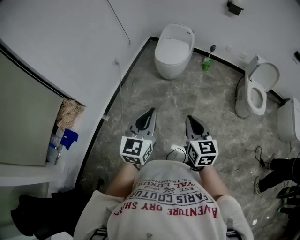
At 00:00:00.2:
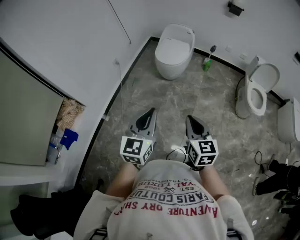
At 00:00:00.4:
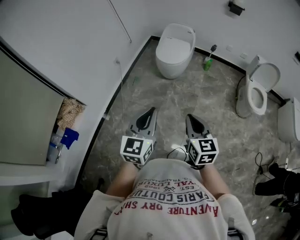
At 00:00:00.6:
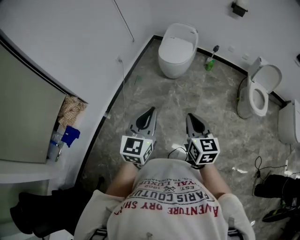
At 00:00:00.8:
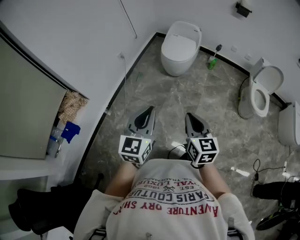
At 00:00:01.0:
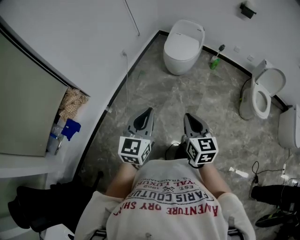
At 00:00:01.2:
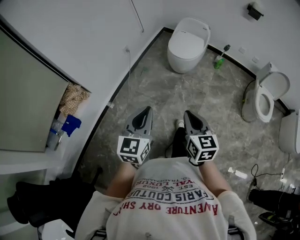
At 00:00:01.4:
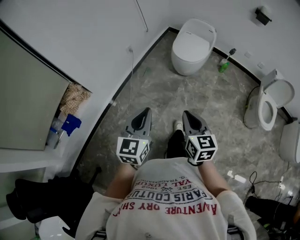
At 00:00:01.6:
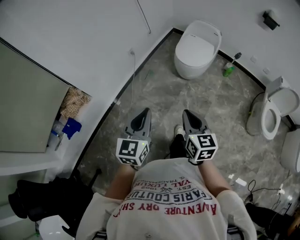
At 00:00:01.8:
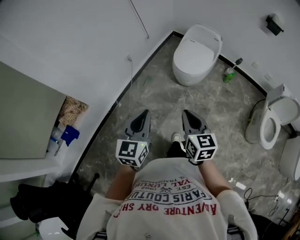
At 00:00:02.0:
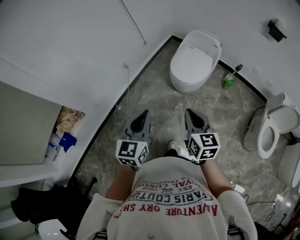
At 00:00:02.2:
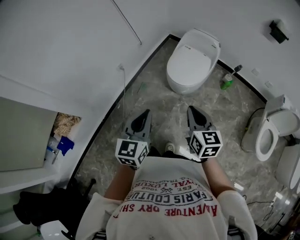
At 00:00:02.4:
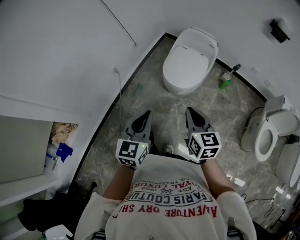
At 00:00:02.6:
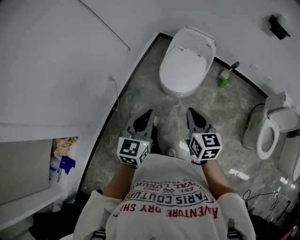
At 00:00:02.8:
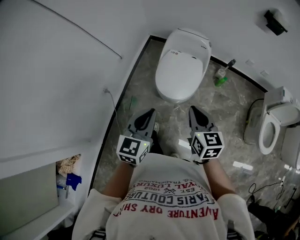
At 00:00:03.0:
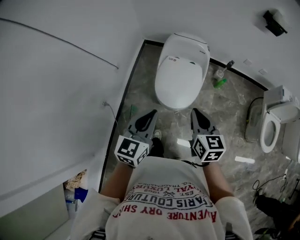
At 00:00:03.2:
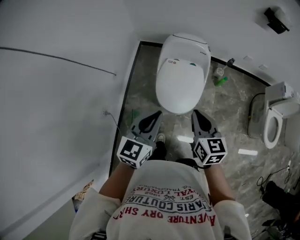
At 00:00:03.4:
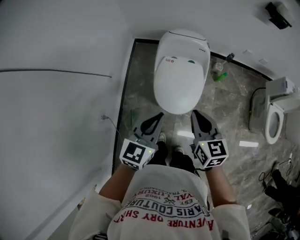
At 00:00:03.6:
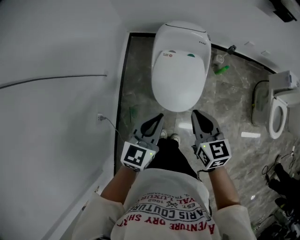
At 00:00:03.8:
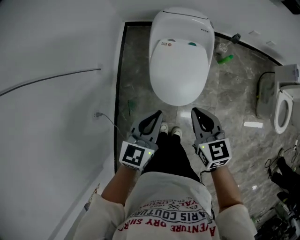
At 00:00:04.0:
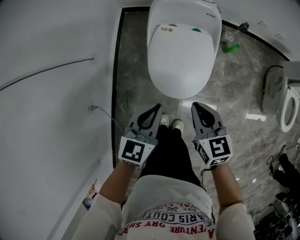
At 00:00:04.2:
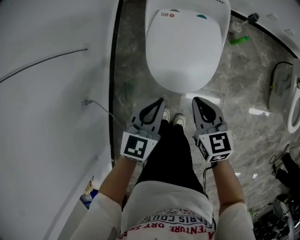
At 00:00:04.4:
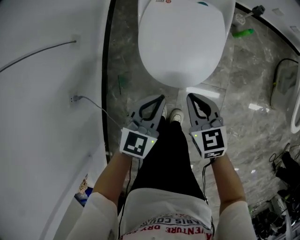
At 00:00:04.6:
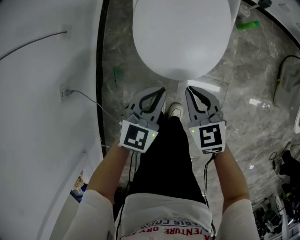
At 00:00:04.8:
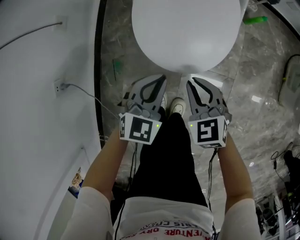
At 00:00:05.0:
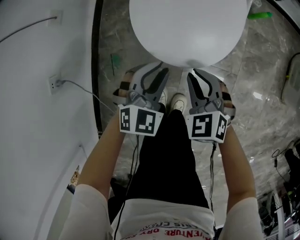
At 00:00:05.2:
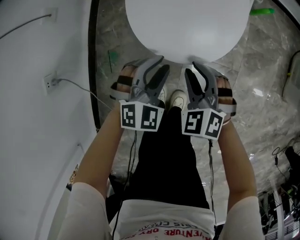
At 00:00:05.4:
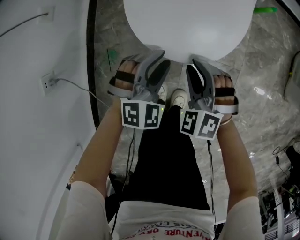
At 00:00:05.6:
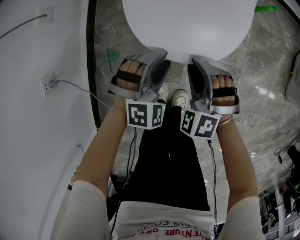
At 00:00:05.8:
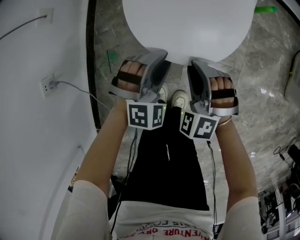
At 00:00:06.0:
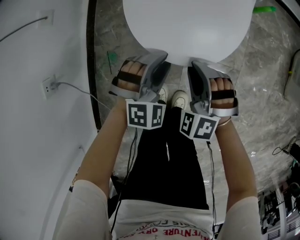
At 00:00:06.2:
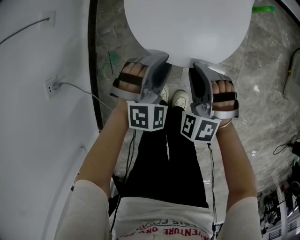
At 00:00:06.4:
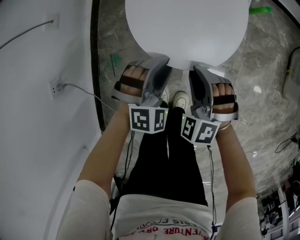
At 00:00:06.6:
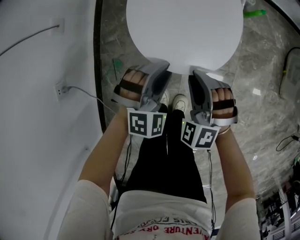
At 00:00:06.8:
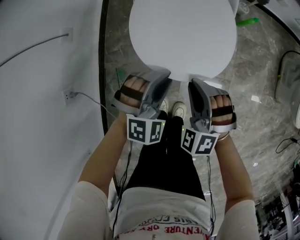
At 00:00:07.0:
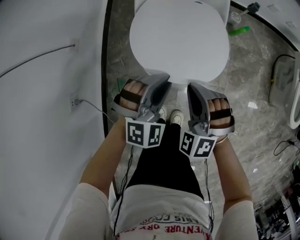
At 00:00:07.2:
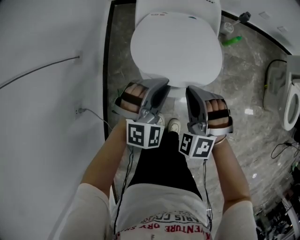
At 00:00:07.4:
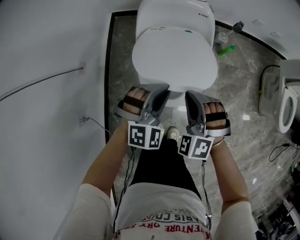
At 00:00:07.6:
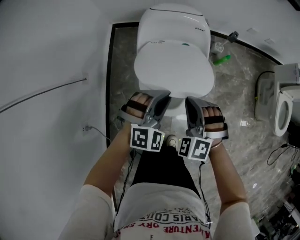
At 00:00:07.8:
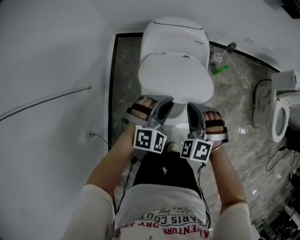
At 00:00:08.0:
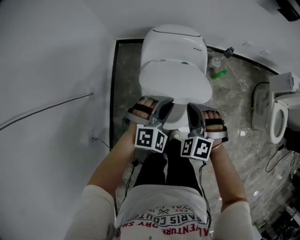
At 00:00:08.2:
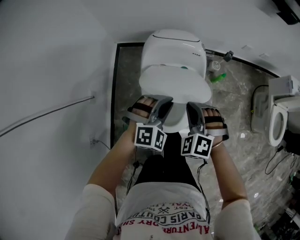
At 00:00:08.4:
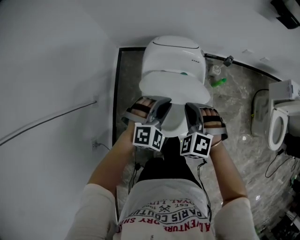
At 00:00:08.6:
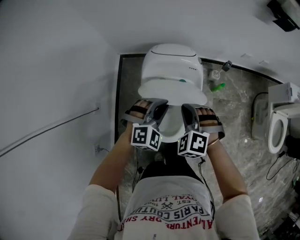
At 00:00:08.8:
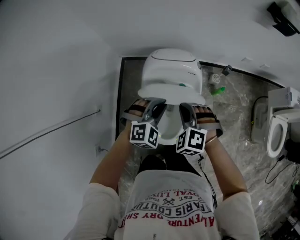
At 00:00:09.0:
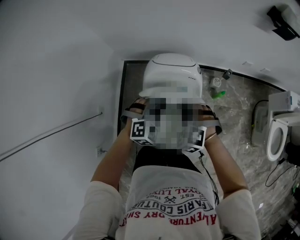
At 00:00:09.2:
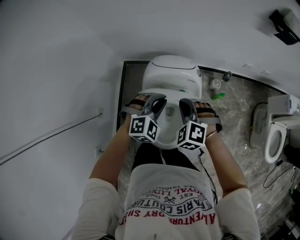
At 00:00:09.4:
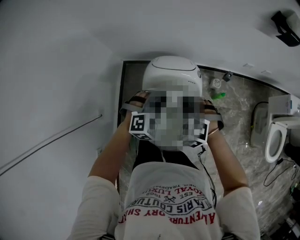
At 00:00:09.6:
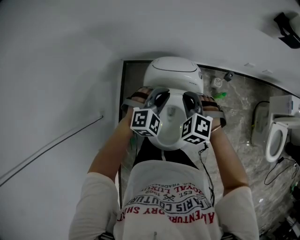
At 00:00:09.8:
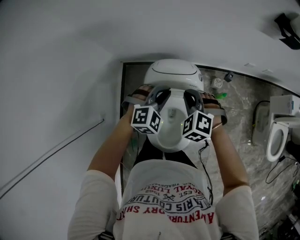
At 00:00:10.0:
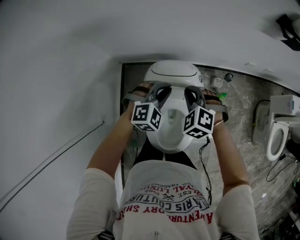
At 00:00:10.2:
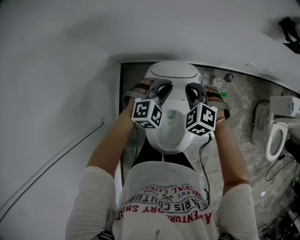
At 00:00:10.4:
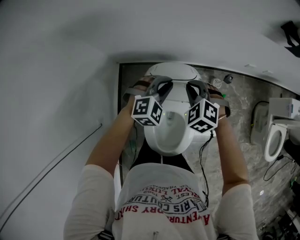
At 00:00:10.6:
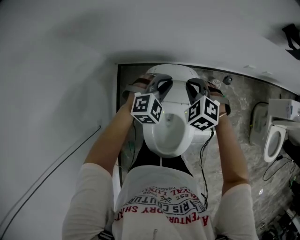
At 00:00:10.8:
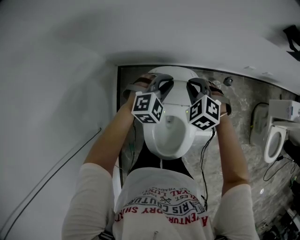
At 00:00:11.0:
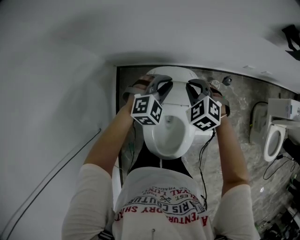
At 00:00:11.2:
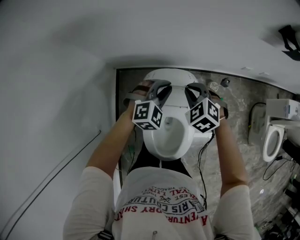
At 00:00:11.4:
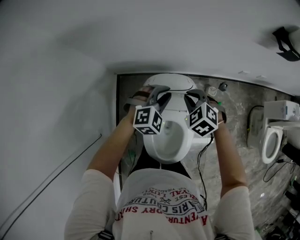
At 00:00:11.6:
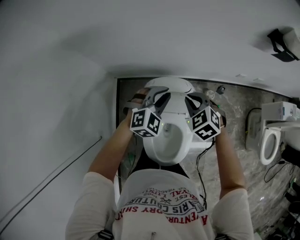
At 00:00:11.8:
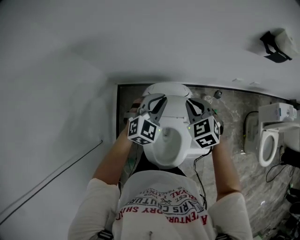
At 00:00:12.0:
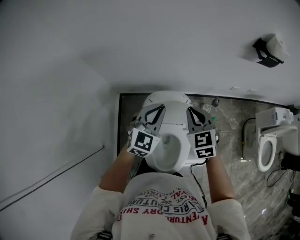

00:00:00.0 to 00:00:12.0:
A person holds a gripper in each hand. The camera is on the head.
00:00:00.0 to 00:00:01.6: The grippers both shift forward and to the left by some 15 cm.
00:00:01.6 to 00:00:03.0: The two grippers travel together, forward, some 60 cm. The left gripper changes its angle by about 30 degrees.
00:00:03.0 to 00:00:04.4: Both grippers move downward, approximately 40 cm. The left gripper changes its angle by about 20 degrees.
00:00:04.4 to 00:00:06.0: Both grippers travel together downward, about 20 cm. The right gripper rotates around the line of its fingers by approximately 60 degrees, counterclockwise from behind, while the left gripper rolls clockwise, seen from behind, by some 50 degrees, and opens.
00:00:06.0 to 00:00:07.6: Both grippers move upward and forward, about 35 cm. The left gripper closes its fingers.
00:00:07.6 to 00:00:09.0: Both grippers travel together forward and upward, roughly 20 cm.
00:00:09.0 to 00:00:10.4: Both grippers travel together forward, some 20 cm.
00:00:10.4 to 00:00:12.0: The grippers both shift upward by about 15 cm. The left gripper rotates roughly 40 degrees. Meanwhile the right gripper swivels about 40 degrees.

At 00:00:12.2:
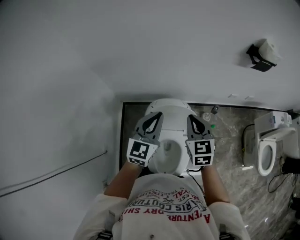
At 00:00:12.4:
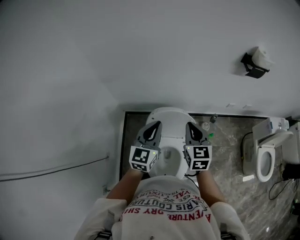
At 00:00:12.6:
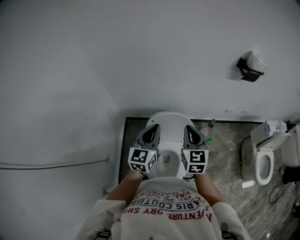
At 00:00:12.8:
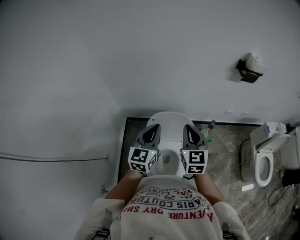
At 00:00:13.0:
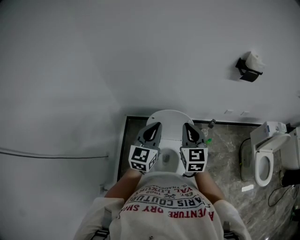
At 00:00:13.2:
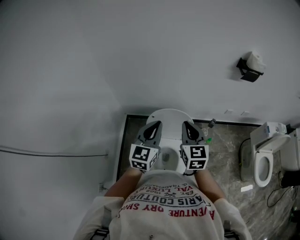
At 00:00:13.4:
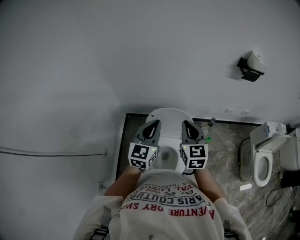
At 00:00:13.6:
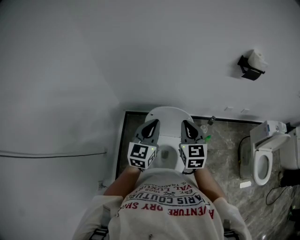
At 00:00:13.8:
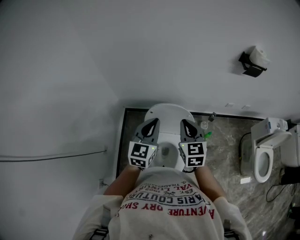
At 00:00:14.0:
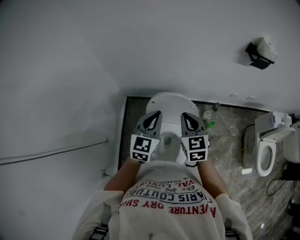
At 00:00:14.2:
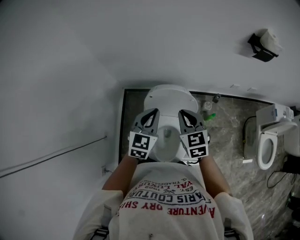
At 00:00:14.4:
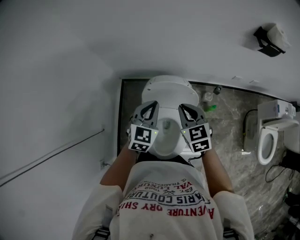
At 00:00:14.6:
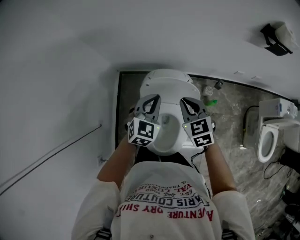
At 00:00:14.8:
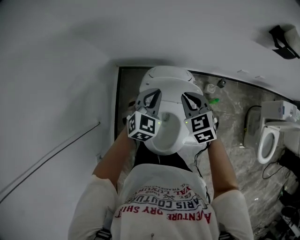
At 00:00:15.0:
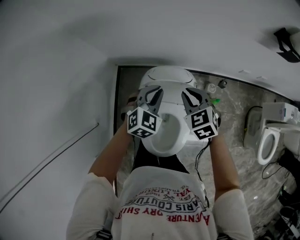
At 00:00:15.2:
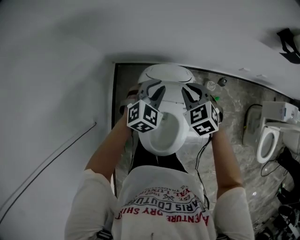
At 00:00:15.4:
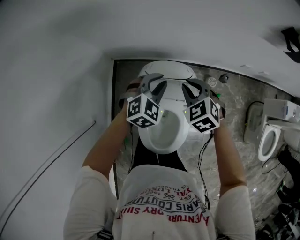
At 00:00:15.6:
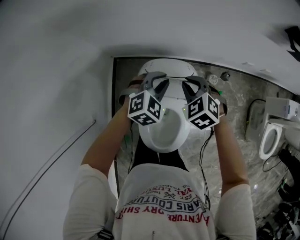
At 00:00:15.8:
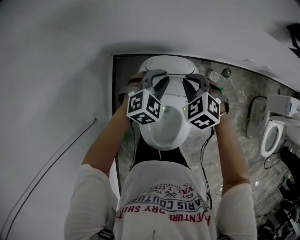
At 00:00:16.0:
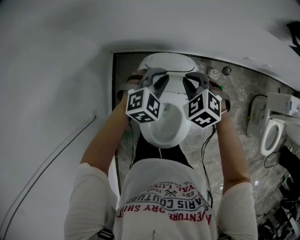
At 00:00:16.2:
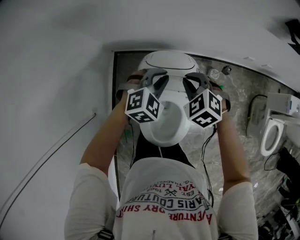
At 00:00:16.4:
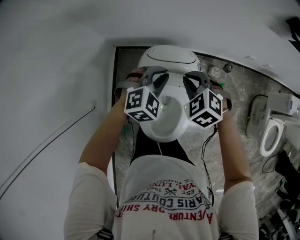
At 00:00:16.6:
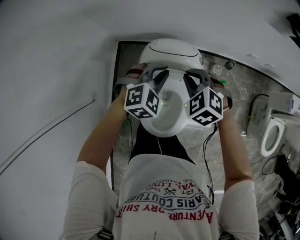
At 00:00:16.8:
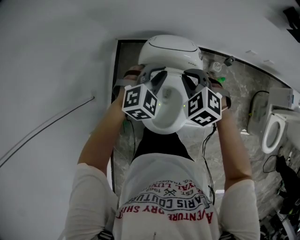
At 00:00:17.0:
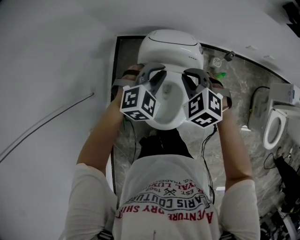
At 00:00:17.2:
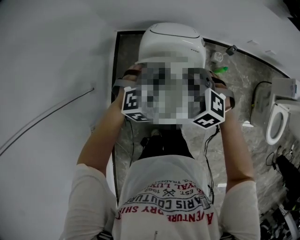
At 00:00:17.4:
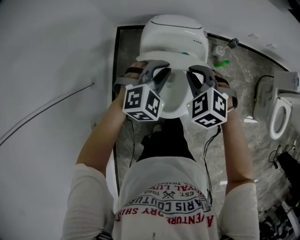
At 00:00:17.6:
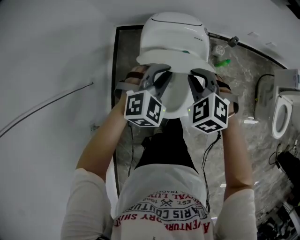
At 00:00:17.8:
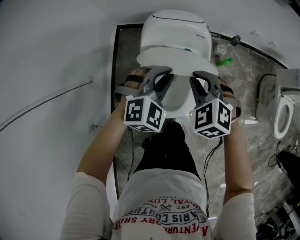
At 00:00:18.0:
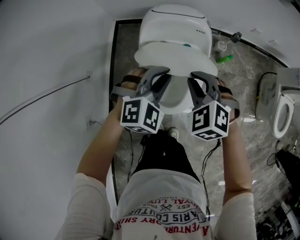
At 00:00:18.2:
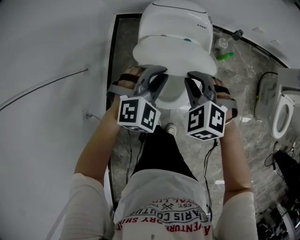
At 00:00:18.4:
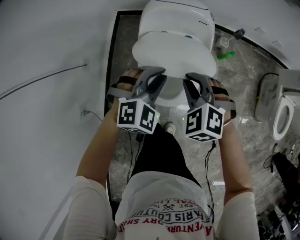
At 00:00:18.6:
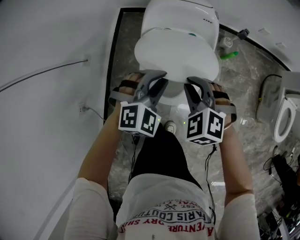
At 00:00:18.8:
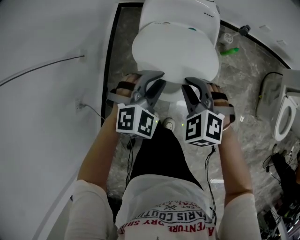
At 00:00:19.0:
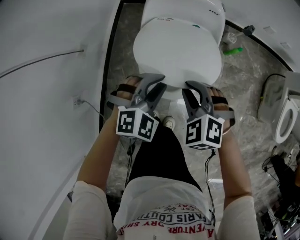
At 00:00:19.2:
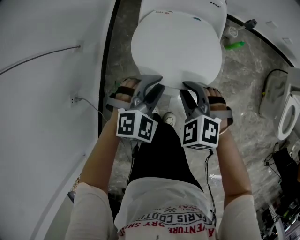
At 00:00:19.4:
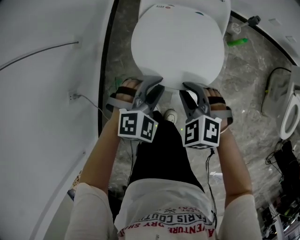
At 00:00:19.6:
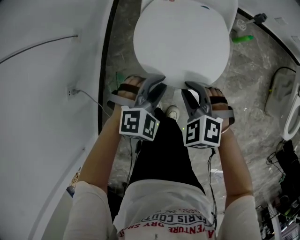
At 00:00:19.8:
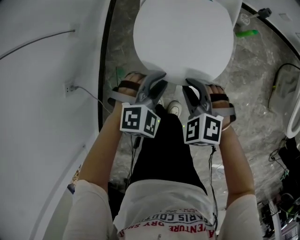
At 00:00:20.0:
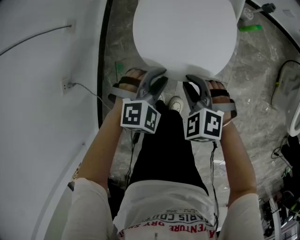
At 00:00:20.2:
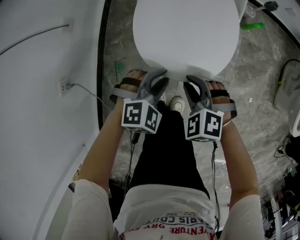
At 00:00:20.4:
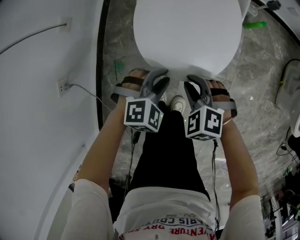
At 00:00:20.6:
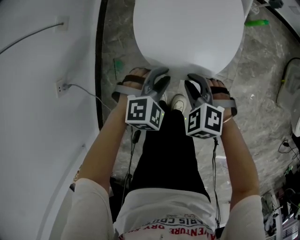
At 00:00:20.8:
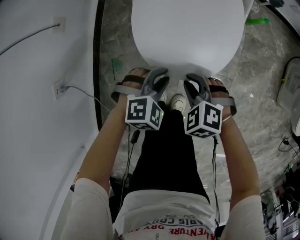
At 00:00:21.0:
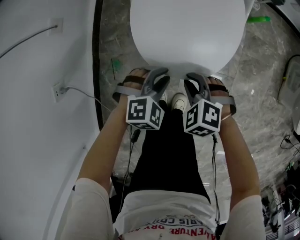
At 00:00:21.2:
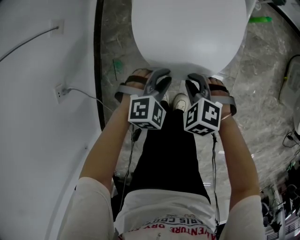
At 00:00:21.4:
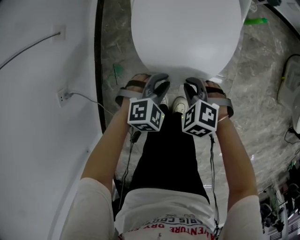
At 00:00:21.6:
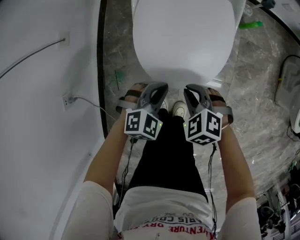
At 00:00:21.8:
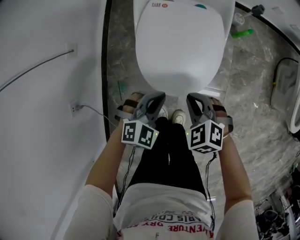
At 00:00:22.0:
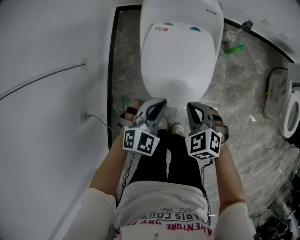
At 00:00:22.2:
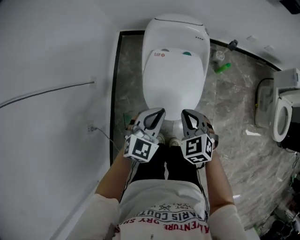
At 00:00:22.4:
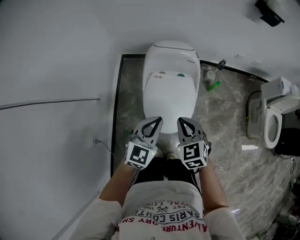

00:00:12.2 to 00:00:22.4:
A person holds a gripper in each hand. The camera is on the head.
00:00:12.2 to 00:00:13.6: The two grippers go roughly 5 cm backward.
00:00:13.6 to 00:00:15.2: Both grippers travel together downward and forward, roughly 25 cm. The right gripper tips its fingers downward by about 30 degrees; the left gripper tips its fingers downward by approximately 30 degrees.
00:00:15.2 to 00:00:16.6: The two grippers go roughly 10 cm backward.
00:00:16.6 to 00:00:18.0: Both grippers move backward, some 20 cm.
00:00:18.0 to 00:00:19.4: The left gripper travels downward and backward by roughly 25 cm. Meanwhile the right gripper is displaced backward and downward by roughly 25 cm.
00:00:19.4 to 00:00:21.0: Both grippers move downward, about 20 cm.
00:00:21.0 to 00:00:22.4: The grippers both shift upward by about 40 cm. The left gripper points its fingers about 40 degrees further upward, and closes, while the right gripper angles its fingers upward, by about 30 degrees.

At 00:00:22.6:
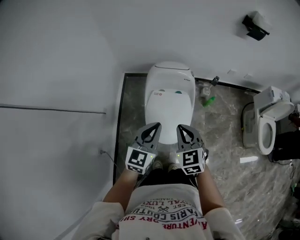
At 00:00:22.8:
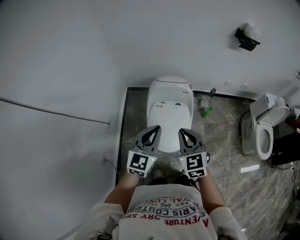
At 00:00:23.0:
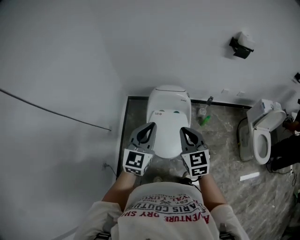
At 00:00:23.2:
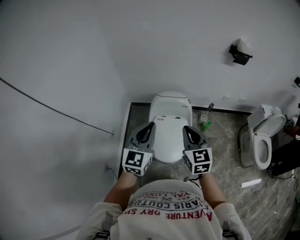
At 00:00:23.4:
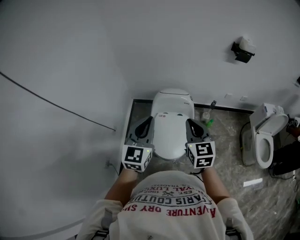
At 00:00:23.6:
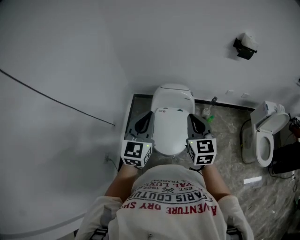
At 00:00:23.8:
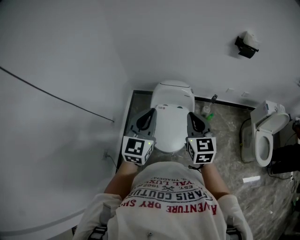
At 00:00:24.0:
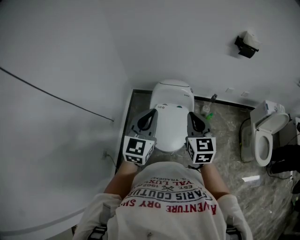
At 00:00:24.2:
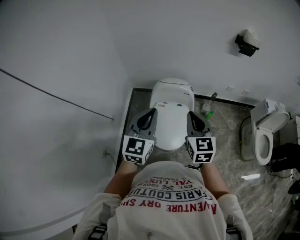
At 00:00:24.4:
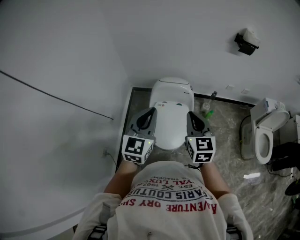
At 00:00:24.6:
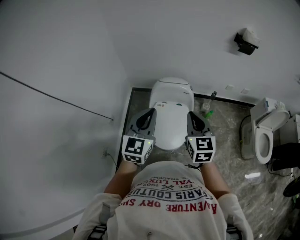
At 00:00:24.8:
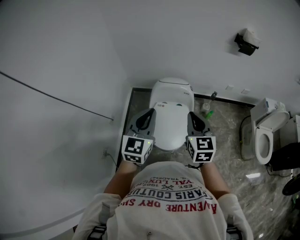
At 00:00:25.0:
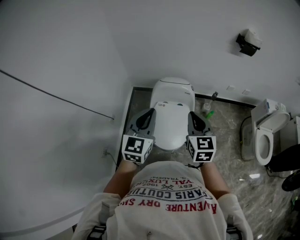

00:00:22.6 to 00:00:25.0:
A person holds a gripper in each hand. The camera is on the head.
00:00:22.6 to 00:00:23.8: The grippers both shift upward by some 15 cm. The right gripper changes its angle by approximately 20 degrees.
00:00:23.8 to 00:00:25.0: There are only small adjustments of the grippers.
